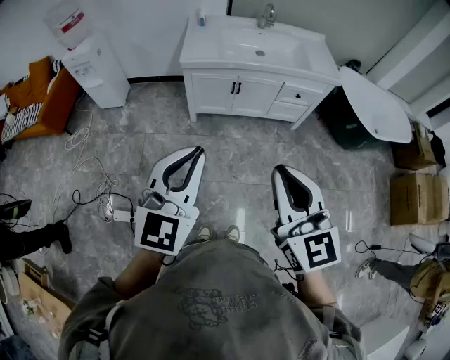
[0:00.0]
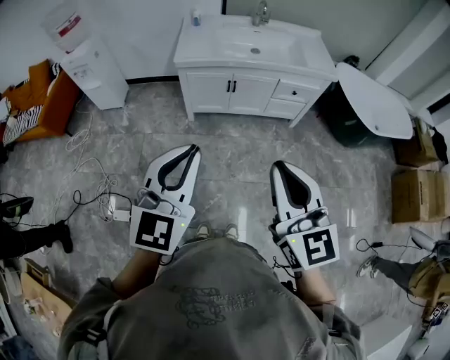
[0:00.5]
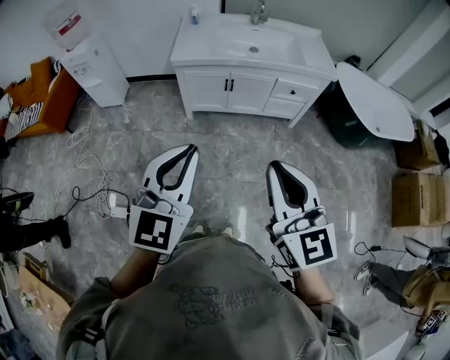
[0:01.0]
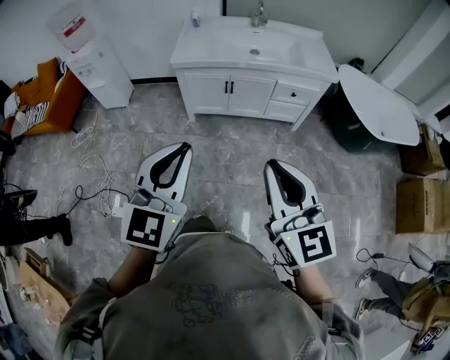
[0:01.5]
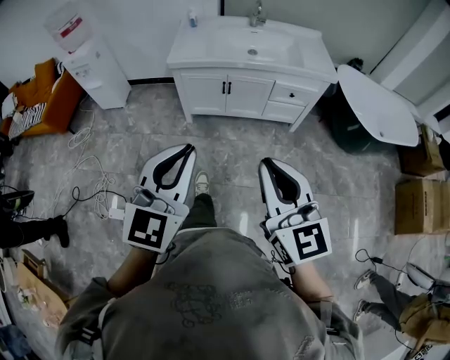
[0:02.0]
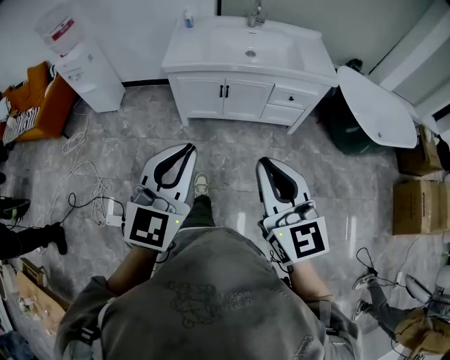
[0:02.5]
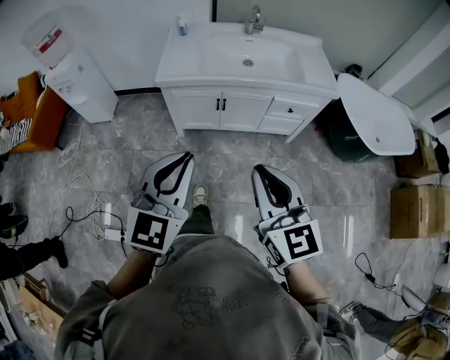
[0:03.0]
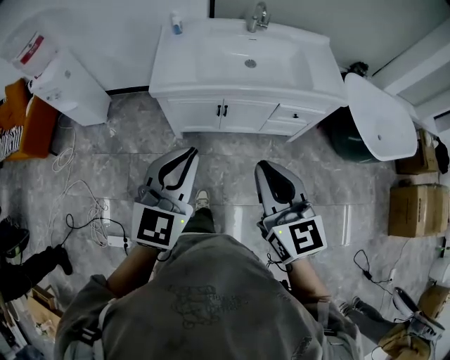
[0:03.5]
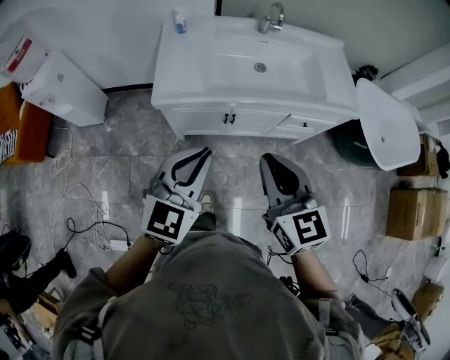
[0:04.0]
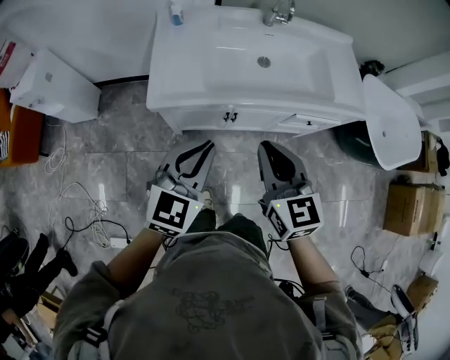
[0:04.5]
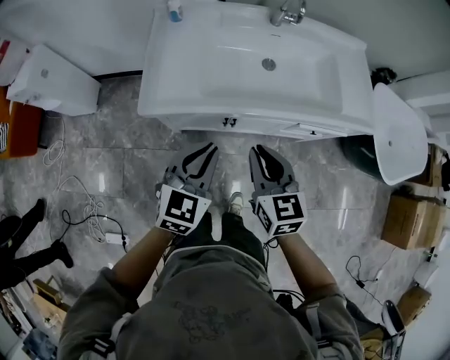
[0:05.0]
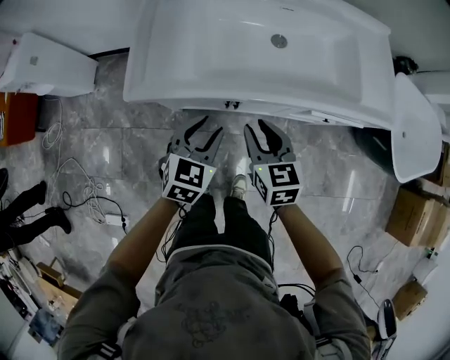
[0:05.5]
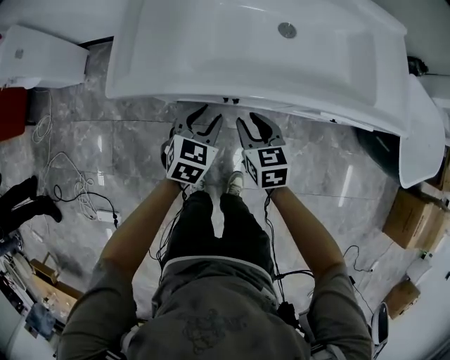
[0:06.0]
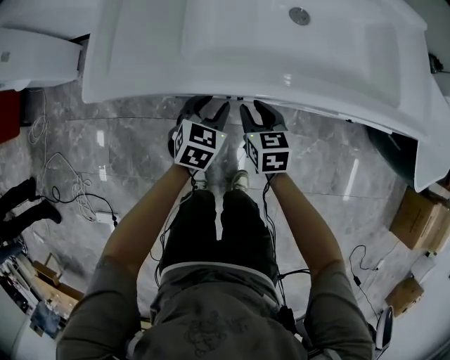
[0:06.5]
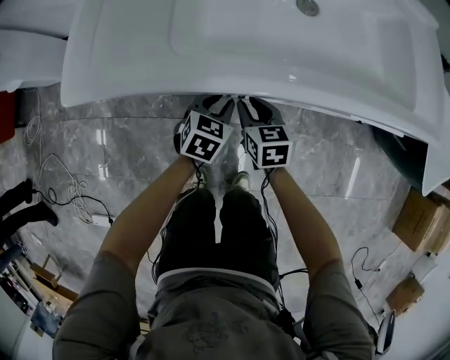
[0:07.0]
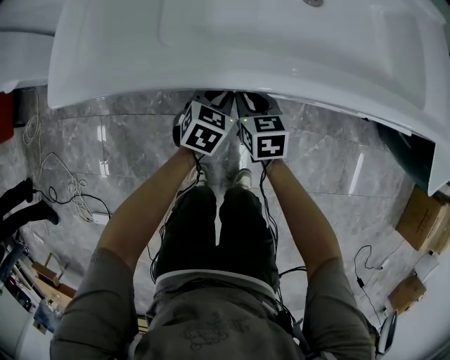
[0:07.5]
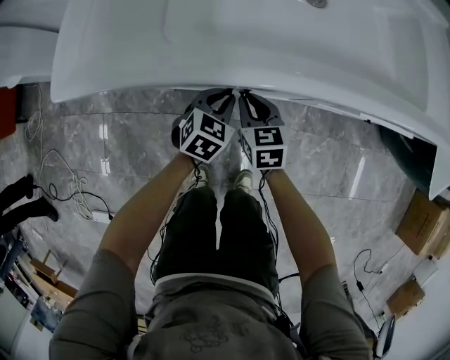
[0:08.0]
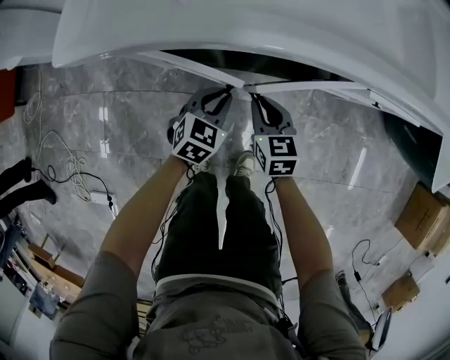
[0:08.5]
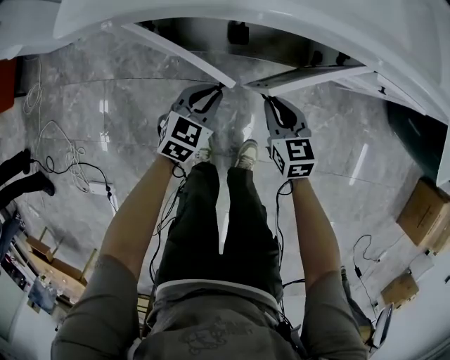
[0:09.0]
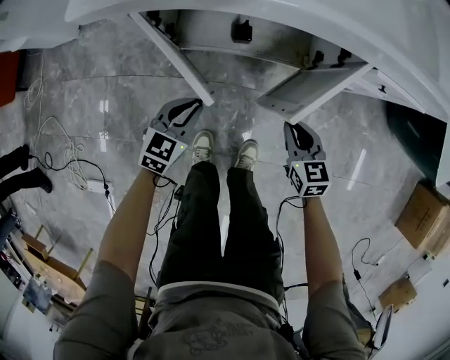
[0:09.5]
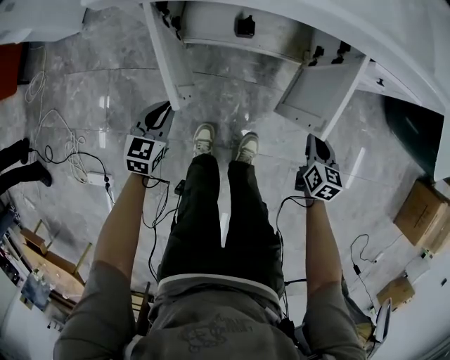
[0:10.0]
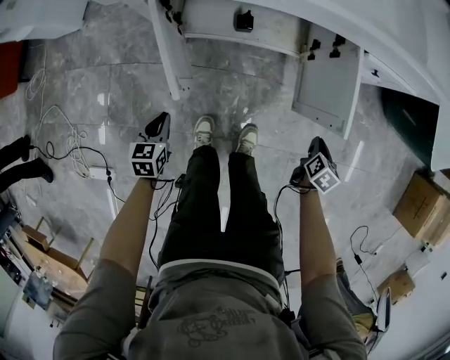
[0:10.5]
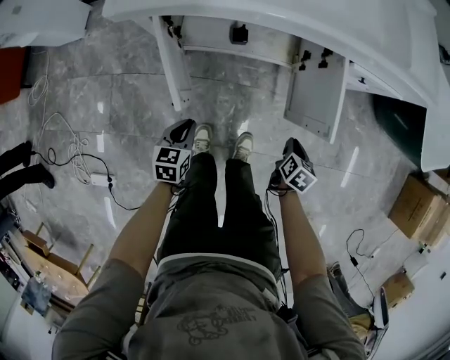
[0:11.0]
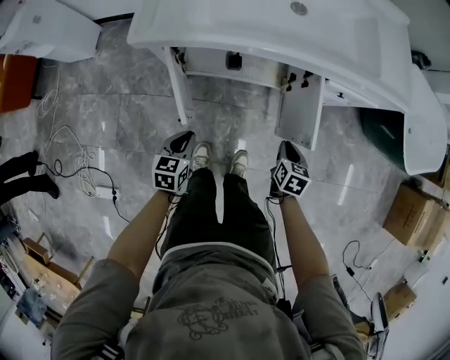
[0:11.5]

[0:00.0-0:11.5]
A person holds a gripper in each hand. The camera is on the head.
0:00.0 to 0:02.0: The grippers both shift to the right by roughly 10 cm.
0:02.0 to 0:04.0: Both grippers are carried forward, about 40 cm.
0:04.0 to 0:06.0: The two grippers go some 40 cm downward and forward. The right gripper rotates about 30 degrees, and opens; the left gripper rotates roughly 30 degrees, and opens up.
0:06.0 to 0:07.5: The two grippers go some 20 cm downward. The left gripper closes up.
0:07.5 to 0:09.5: The left gripper moves backward and to the left, some 20 cm, while the right gripper goes roughly 20 cm backward and to the right.
0:09.5 to 0:11.5: The left gripper goes roughly 15 cm upward and backward, and rotates approximately 20 degrees. Meanwhile the right gripper moves upward, roughly 10 cm, reaches roughly 20 cm to the right, then returns, and swivels about 30 degrees.

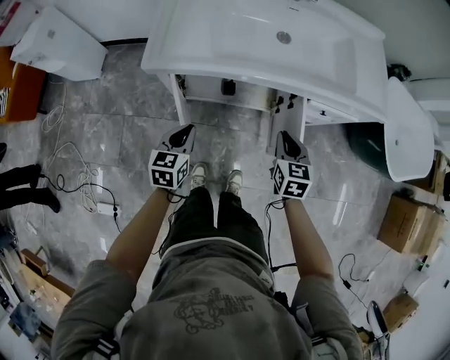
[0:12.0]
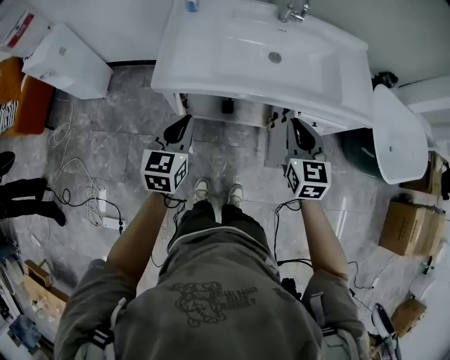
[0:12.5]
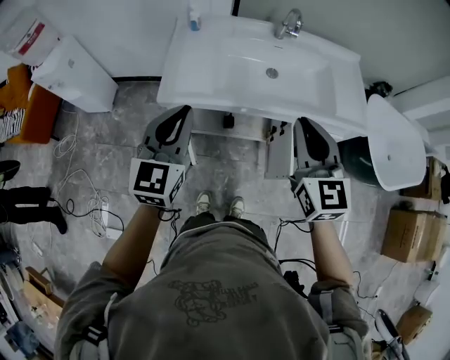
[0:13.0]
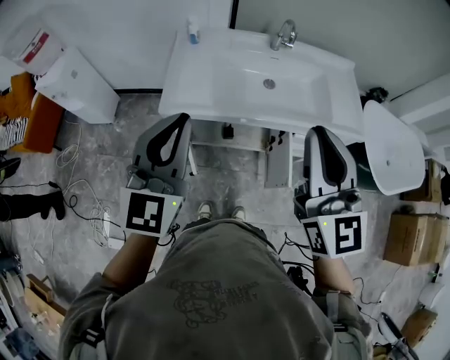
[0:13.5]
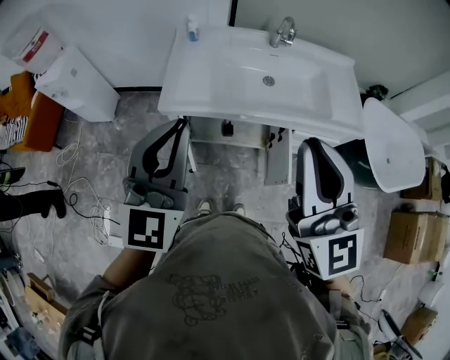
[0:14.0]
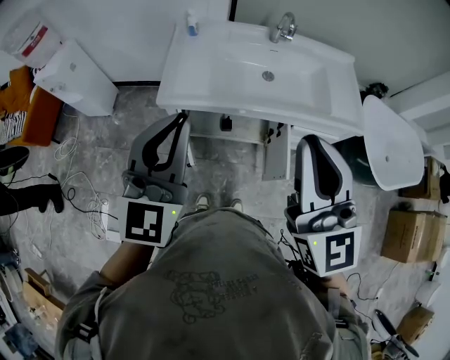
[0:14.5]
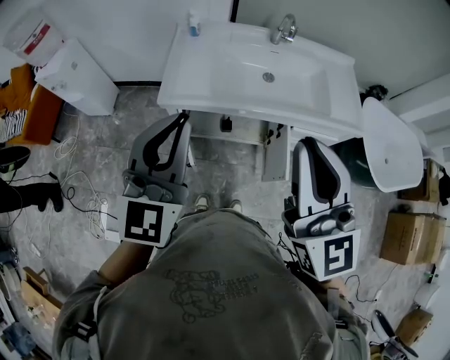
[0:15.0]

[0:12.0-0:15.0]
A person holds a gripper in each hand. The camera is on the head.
0:12.0 to 0:13.5: Both grippers move upward, roughly 40 cm. The right gripper tilts its fingers roughly 40 degrees upward. The left gripper points its fingers roughly 40 degrees further upward.
0:13.5 to 0:15.0: The right gripper heads backward, covering approximately 5 cm.

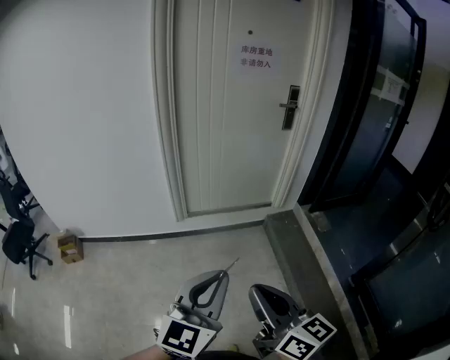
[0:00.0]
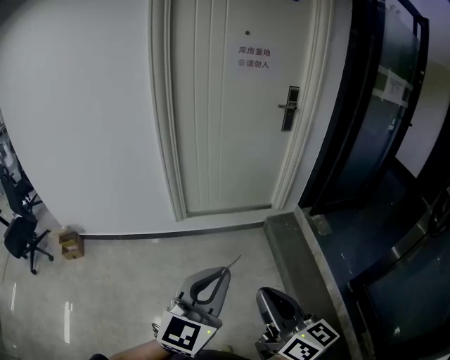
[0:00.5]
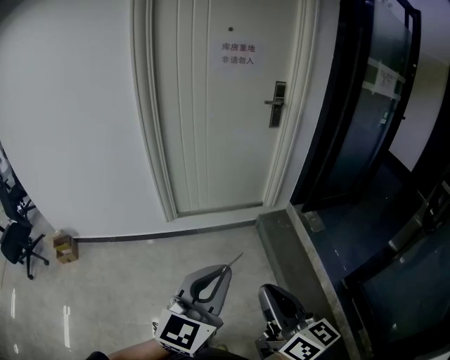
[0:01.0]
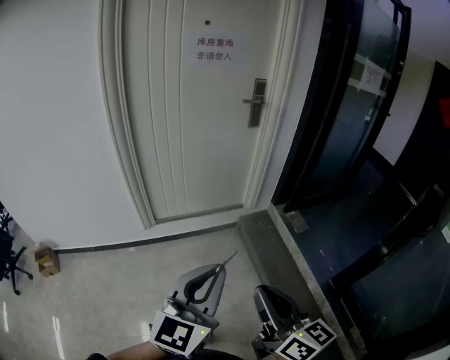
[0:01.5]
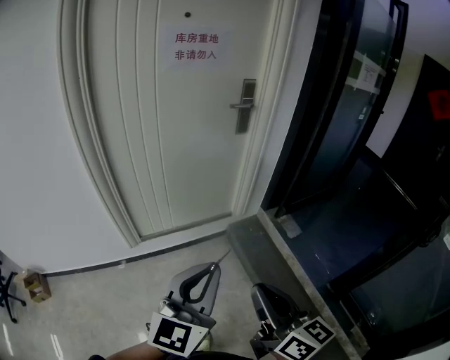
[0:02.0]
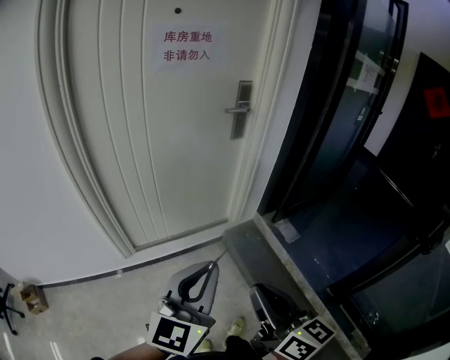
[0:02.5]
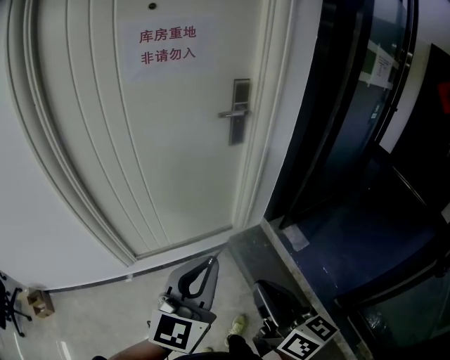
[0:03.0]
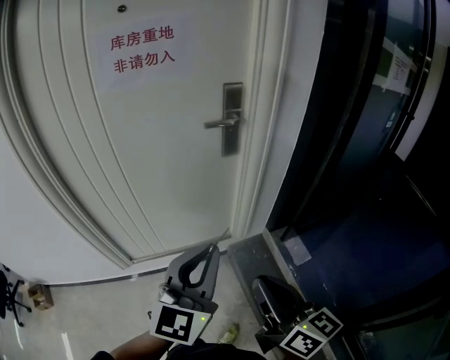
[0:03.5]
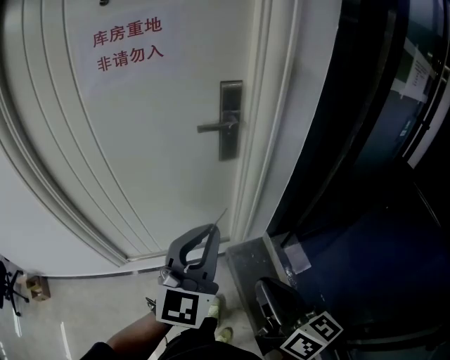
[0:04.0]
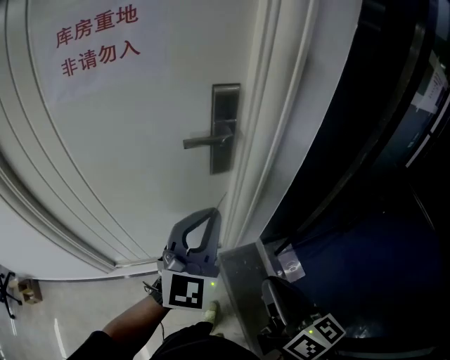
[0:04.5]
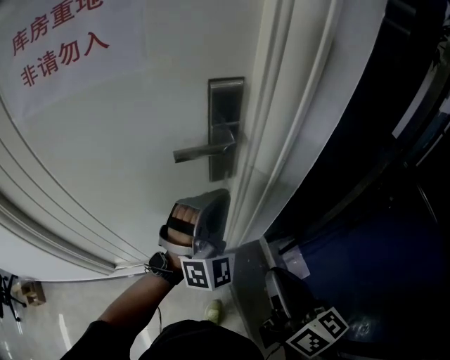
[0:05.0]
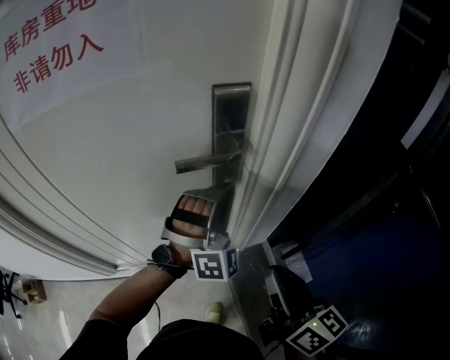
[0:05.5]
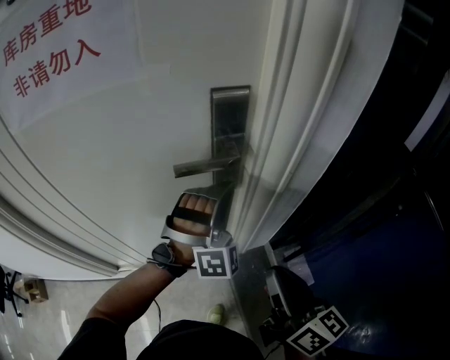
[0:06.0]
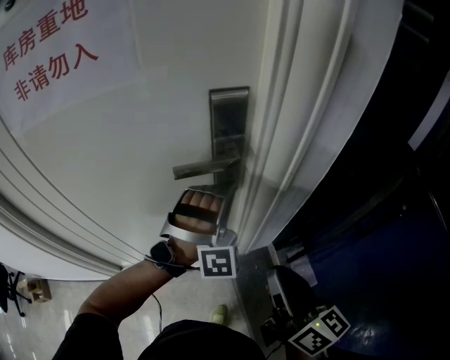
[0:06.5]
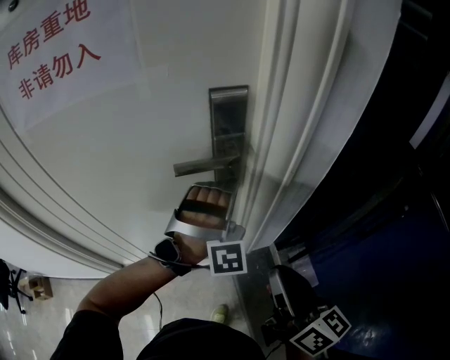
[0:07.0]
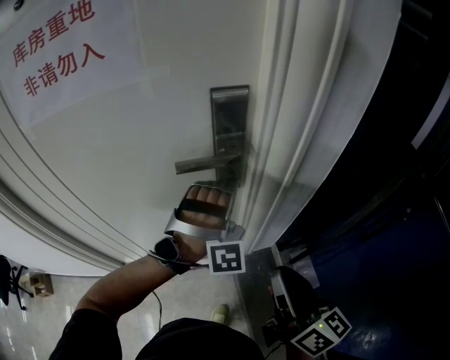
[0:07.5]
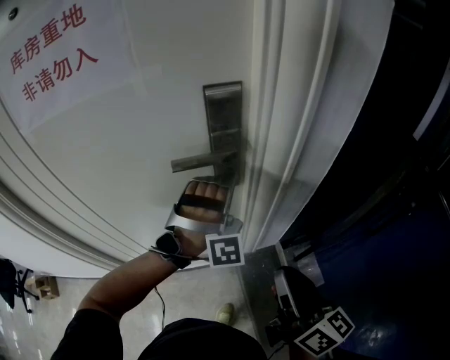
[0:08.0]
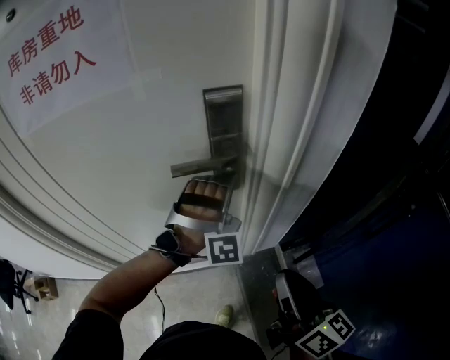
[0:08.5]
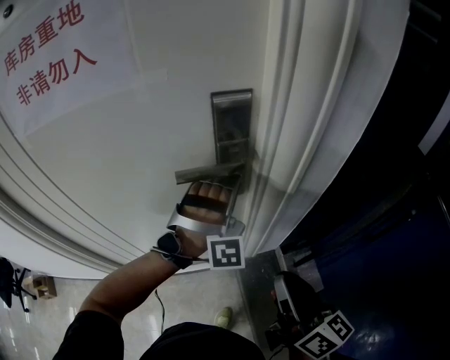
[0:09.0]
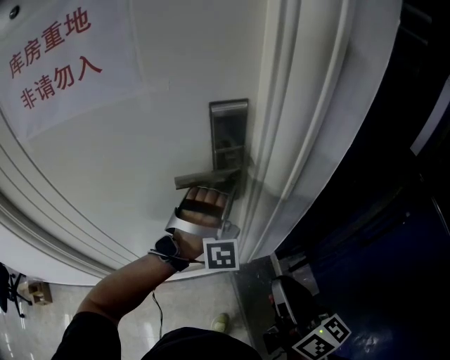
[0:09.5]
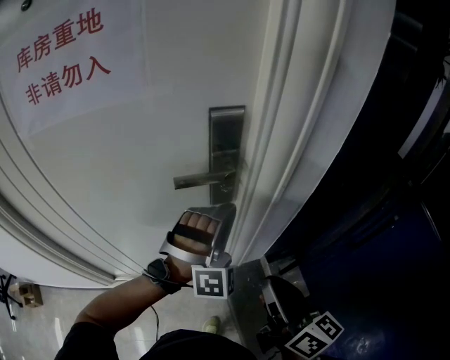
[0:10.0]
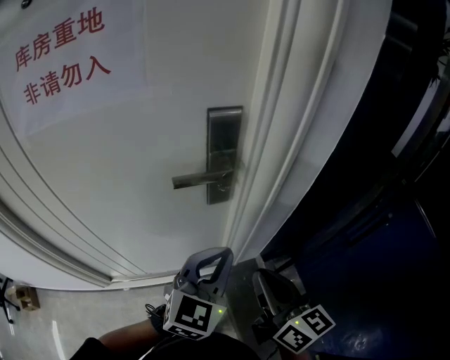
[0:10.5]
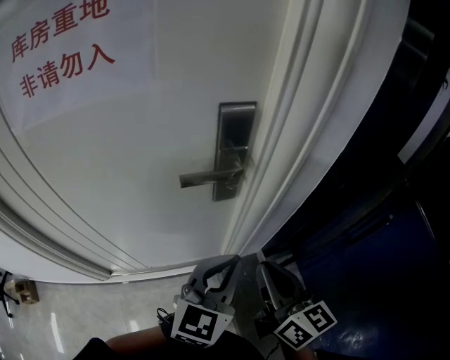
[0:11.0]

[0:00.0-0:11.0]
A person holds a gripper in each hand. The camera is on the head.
0:00.0 to 0:02.0: The two grippers go approximately 30 cm forward and to the right.
0:02.0 to 0:03.5: The grippers both shift forward and to the right by approximately 35 cm.
0:03.5 to 0:05.5: Both grippers move forward, about 35 cm. The left gripper rolls clockwise, seen from behind, by approximately 70 degrees.
0:05.5 to 0:07.5: The left gripper swivels some 20 degrees.
0:07.5 to 0:09.0: The grippers stay close to where they were, moving slightly.
0:09.0 to 0:11.0: The left gripper heads backward, covering roughly 15 cm, and rotates around the line of its fingers by about 80 degrees, counterclockwise from behind.

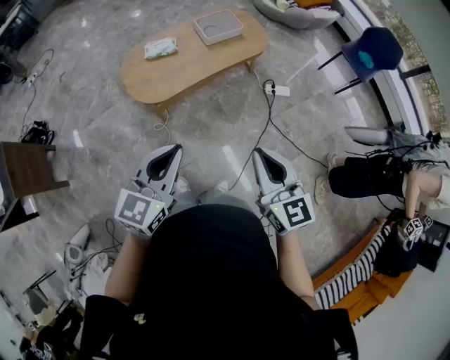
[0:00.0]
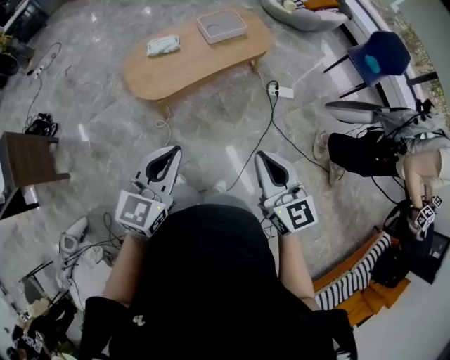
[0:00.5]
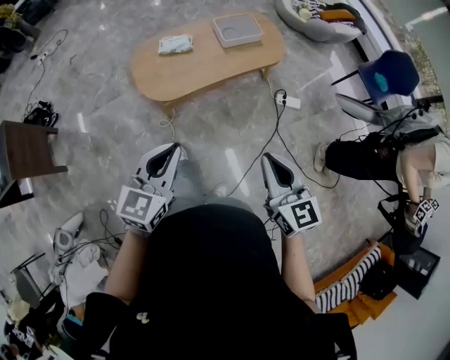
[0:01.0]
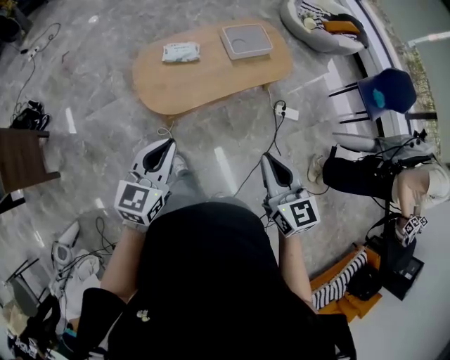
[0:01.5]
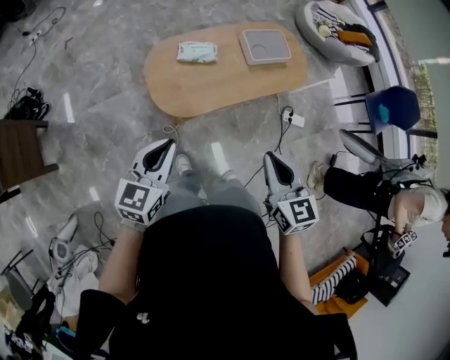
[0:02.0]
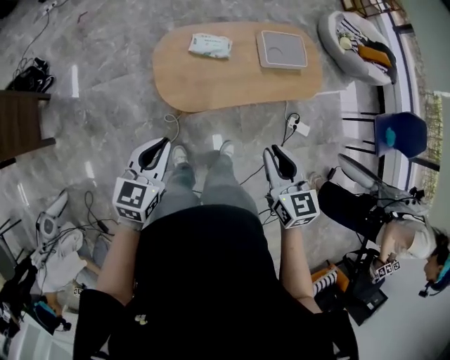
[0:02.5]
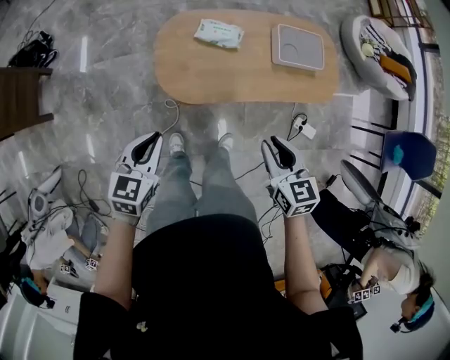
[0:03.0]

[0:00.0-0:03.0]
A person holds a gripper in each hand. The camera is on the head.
0:00.0 to 0:01.5: The left gripper shifts roughly 25 cm forward, to the left and downward; the right gripper shifts some 20 cm forward and to the left.
0:01.5 to 0:03.0: The right gripper heads forward and downward, covering approximately 25 cm, and turns by about 30 degrees; the left gripper is displaced downward, forward and to the left by roughly 20 cm, and swivels approximately 30 degrees.
